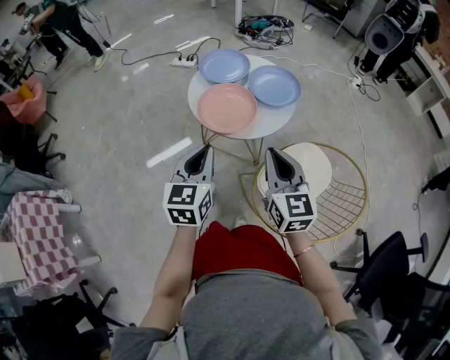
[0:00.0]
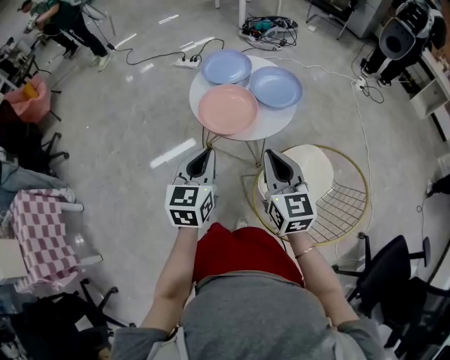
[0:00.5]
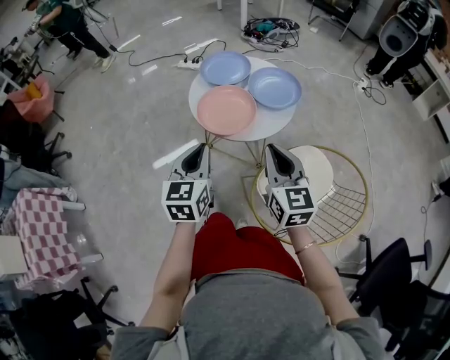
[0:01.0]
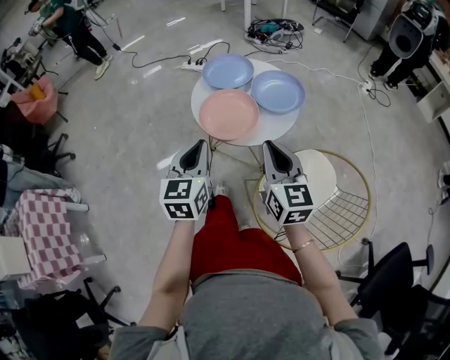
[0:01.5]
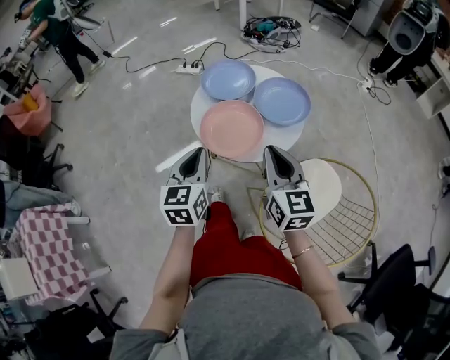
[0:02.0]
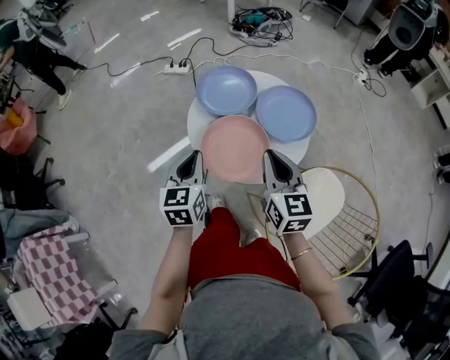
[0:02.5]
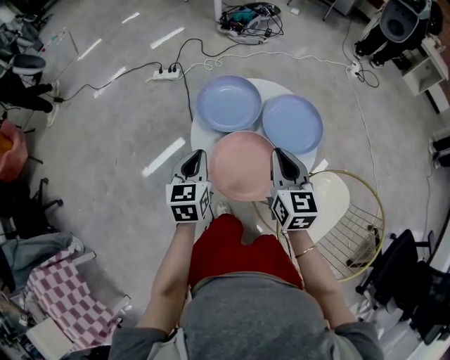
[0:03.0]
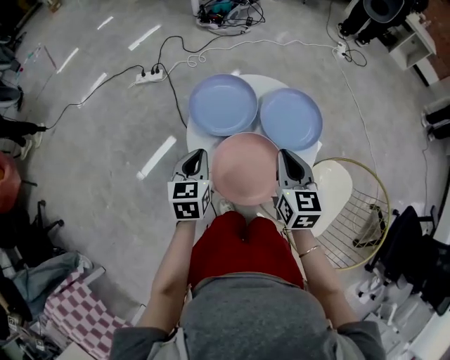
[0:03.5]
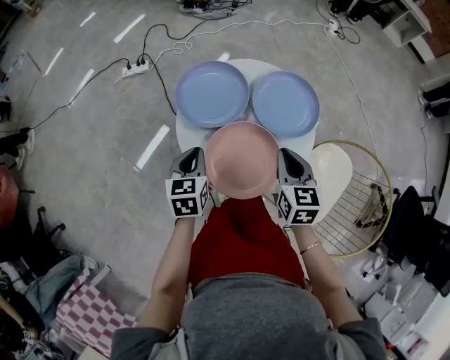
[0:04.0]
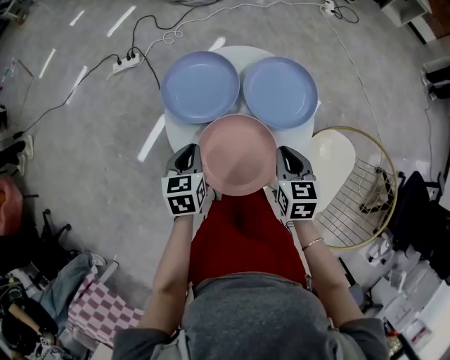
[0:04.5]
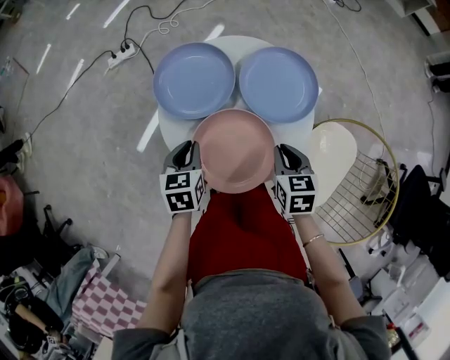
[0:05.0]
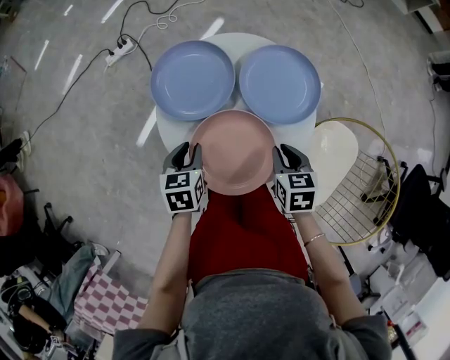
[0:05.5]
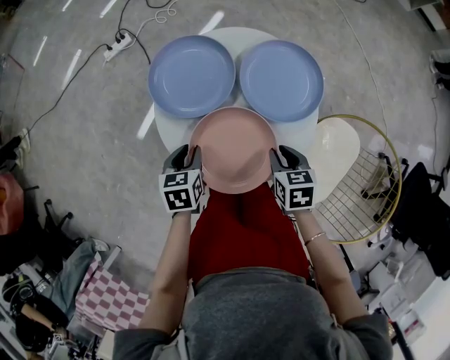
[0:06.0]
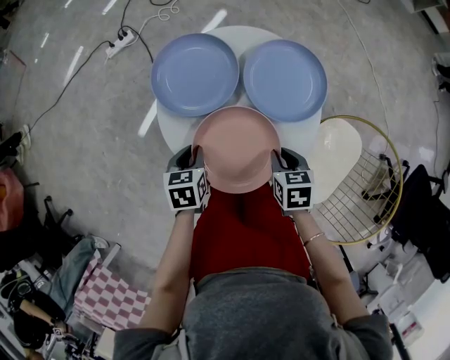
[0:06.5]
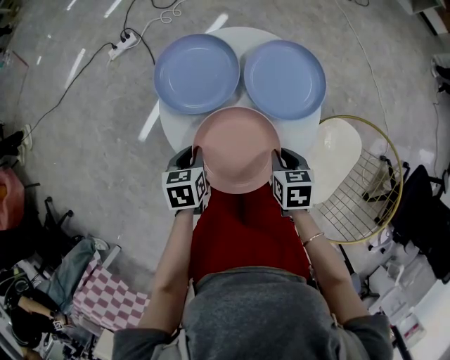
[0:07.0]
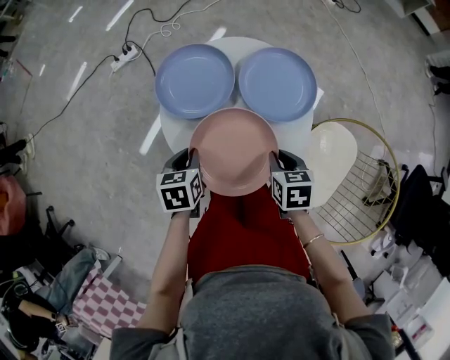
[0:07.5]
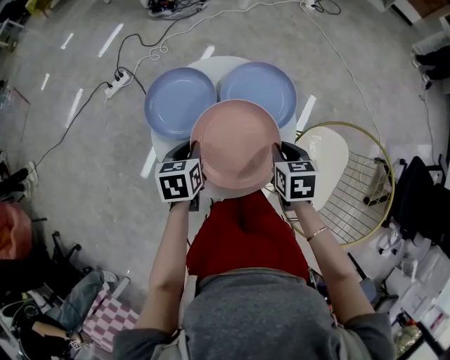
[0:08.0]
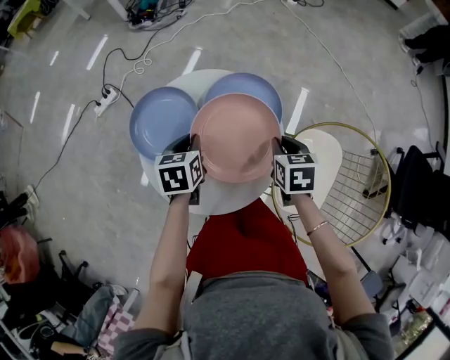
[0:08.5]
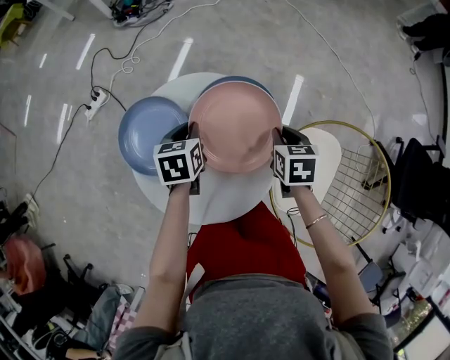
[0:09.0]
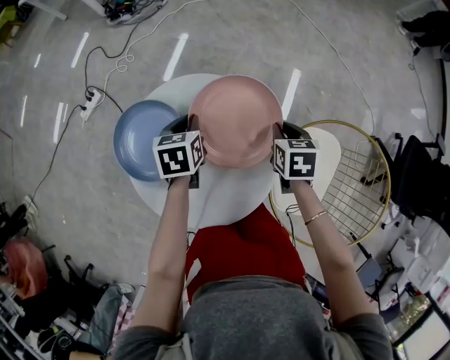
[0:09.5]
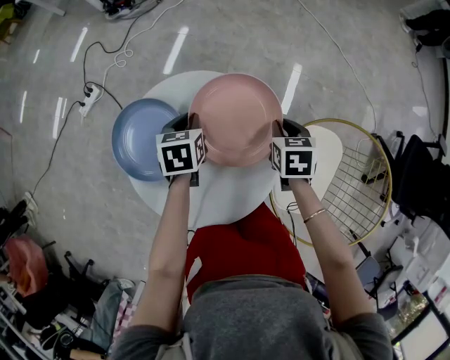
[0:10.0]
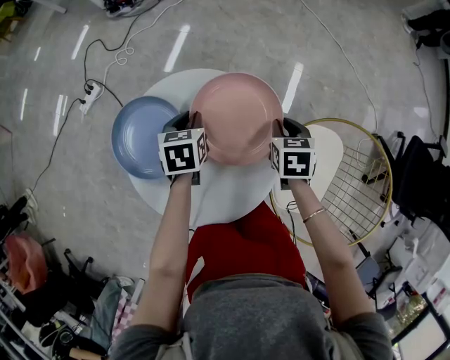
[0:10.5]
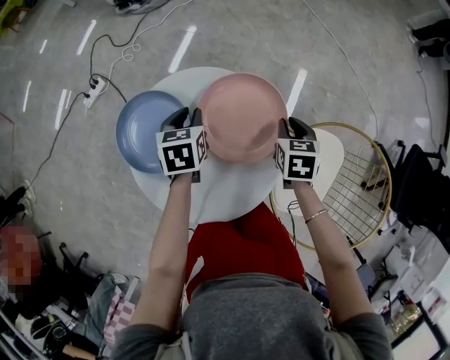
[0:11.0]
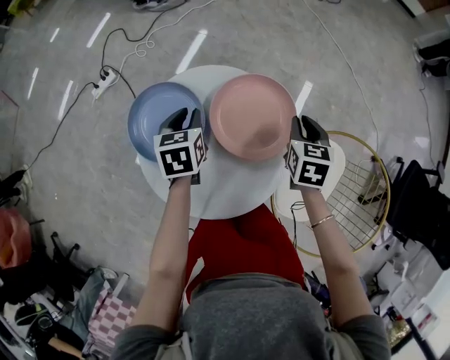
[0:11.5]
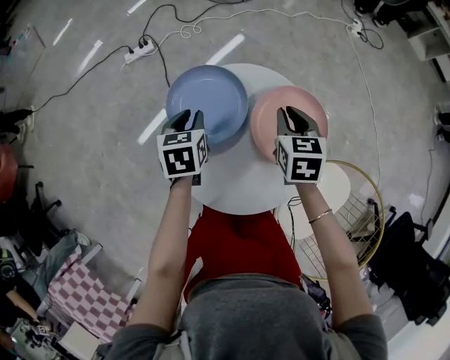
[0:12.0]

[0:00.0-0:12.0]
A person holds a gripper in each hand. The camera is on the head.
0:00.0 to 0:02.0: The two grippers go some 10 cm forward.
0:02.0 to 0:04.0: The two grippers go approximately 20 cm forward and downward. The left gripper changes its angle by roughly 30 degrees. The right gripper rotates approximately 30 degrees.
0:04.0 to 0:06.0: The two grippers go some 10 cm downward. The left gripper opens up. The right gripper rotates about 30 degrees.
0:06.0 to 0:08.0: The right gripper travels upward by approximately 5 cm. The left gripper heads upward and forward, covering roughly 10 cm.
0:08.0 to 0:10.0: The left gripper goes some 20 cm forward; the right gripper travels forward and to the right by roughly 15 cm.
0:10.0 to 0:12.0: The right gripper shifts by about 20 cm, and changes its angle by about 30 degrees, while the left gripper shifts by about 15 cm, and rotates roughly 30 degrees.

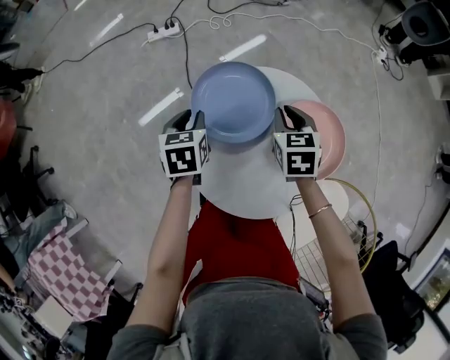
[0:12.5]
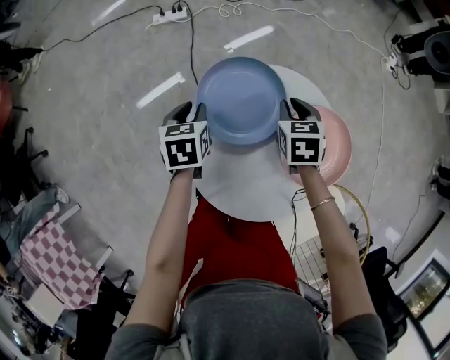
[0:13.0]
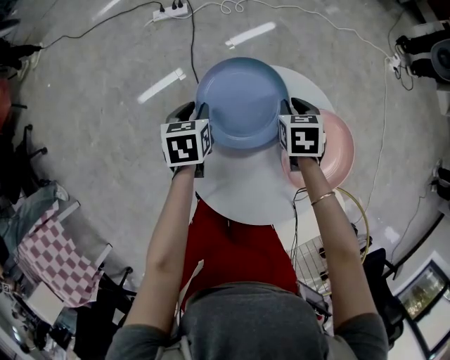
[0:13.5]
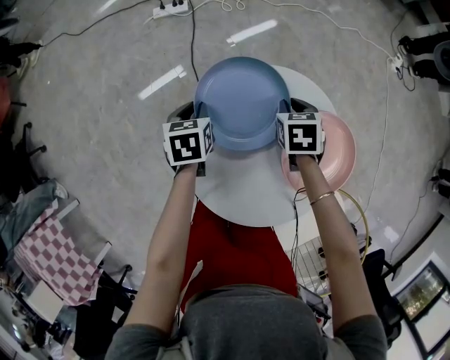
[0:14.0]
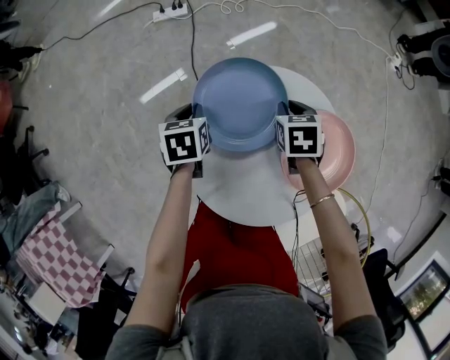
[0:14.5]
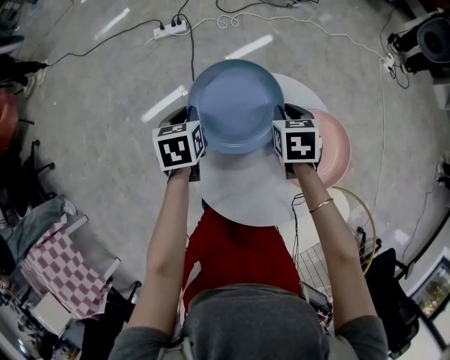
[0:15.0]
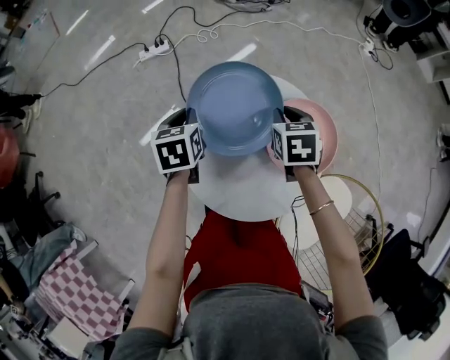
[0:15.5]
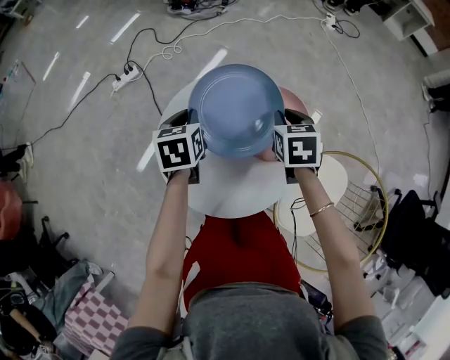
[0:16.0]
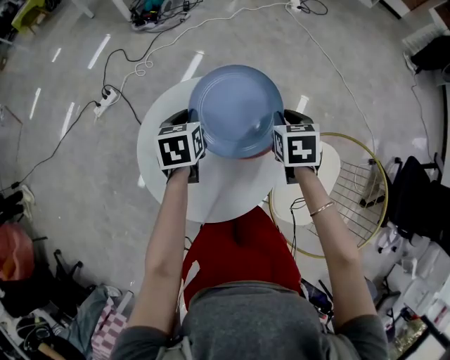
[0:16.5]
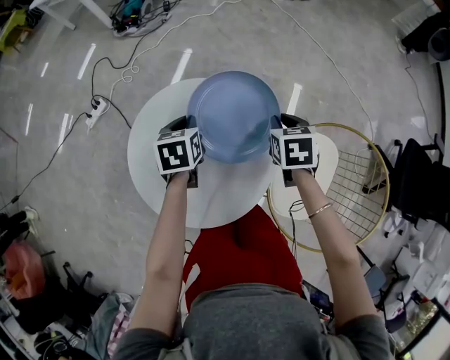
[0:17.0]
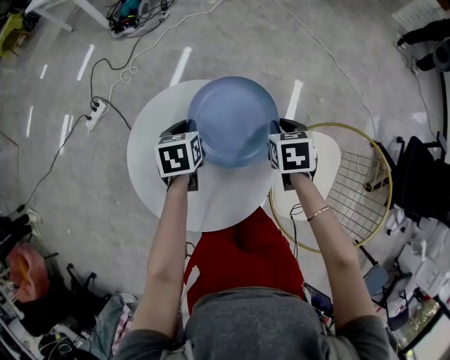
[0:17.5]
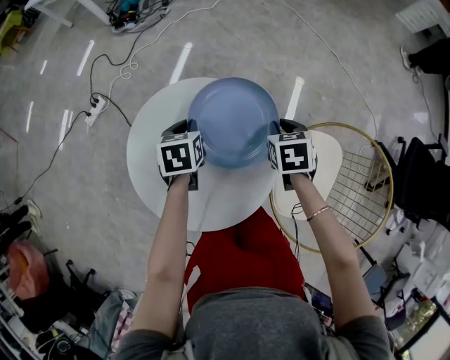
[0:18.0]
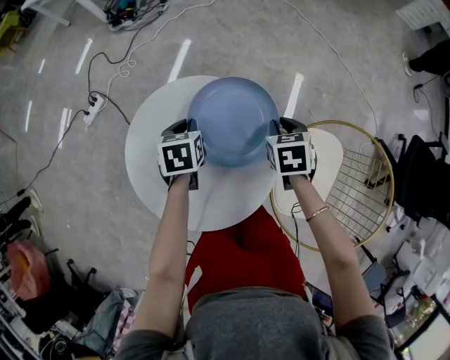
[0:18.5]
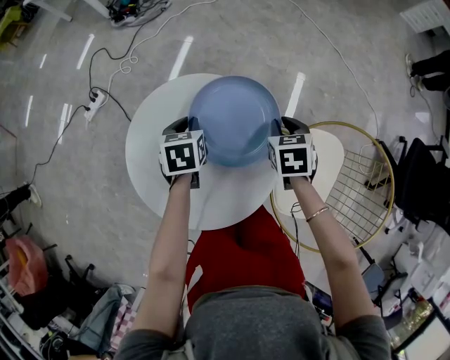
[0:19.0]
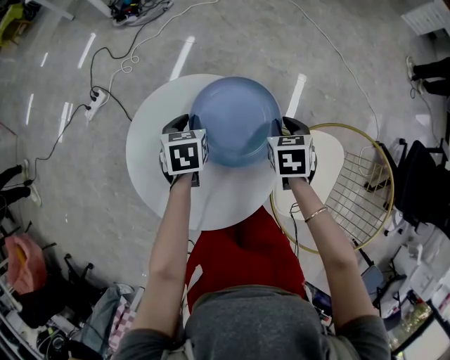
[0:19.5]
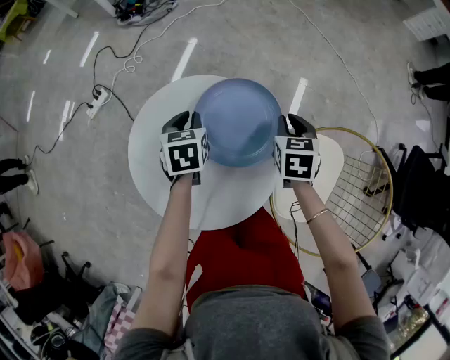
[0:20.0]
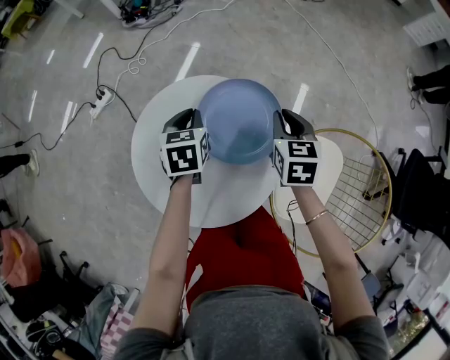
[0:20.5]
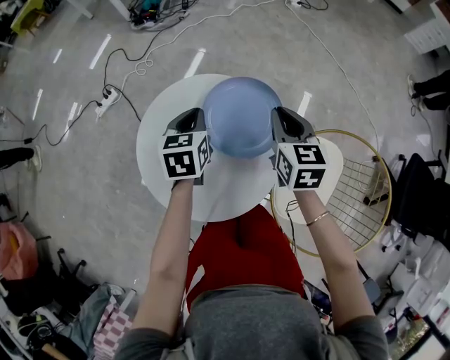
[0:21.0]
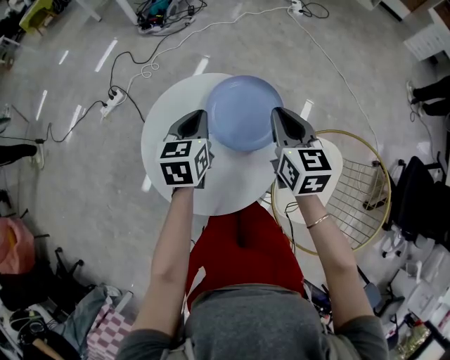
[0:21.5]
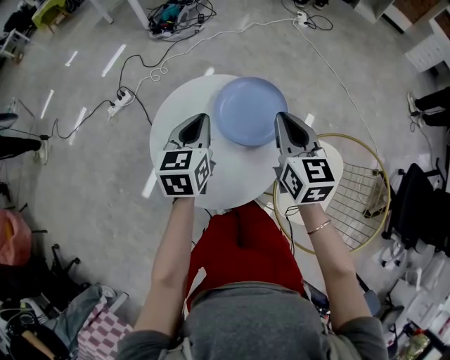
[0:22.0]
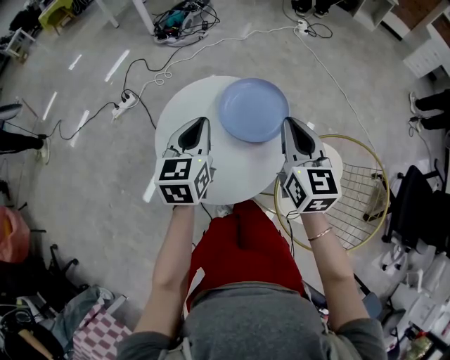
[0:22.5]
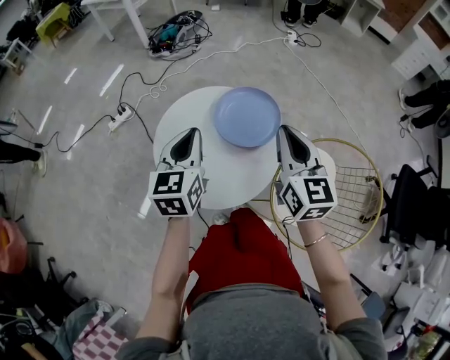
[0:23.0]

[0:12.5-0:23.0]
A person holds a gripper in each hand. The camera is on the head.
0:12.5 to 0:14.5: Both grippers travel together downward, about 5 cm.
0:14.5 to 0:16.5: The left gripper changes place by roughly 25 cm, and rotates some 40 degrees; the right gripper moves approximately 25 cm, and turns by approximately 40 degrees.
0:16.5 to 0:19.0: Both grippers travel together downward, approximately 10 cm.
0:19.0 to 0:21.0: Both grippers travel together upward, about 10 cm. The right gripper changes its angle by about 30 degrees.
0:21.0 to 0:23.0: Both grippers travel together upward and backward, roughly 20 cm. The right gripper swivels some 20 degrees; the left gripper turns by about 20 degrees.

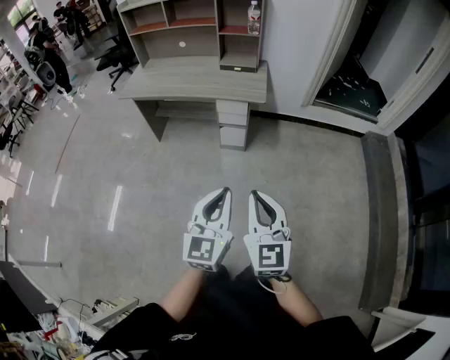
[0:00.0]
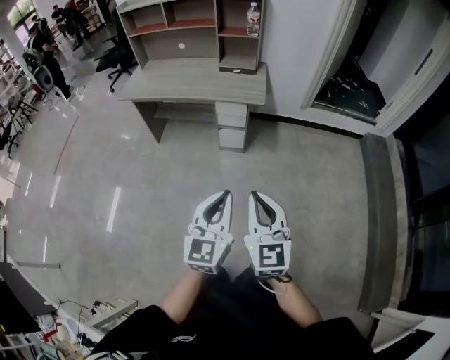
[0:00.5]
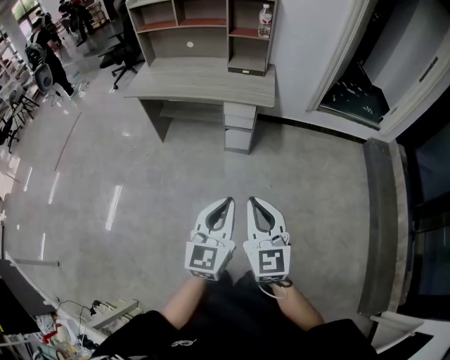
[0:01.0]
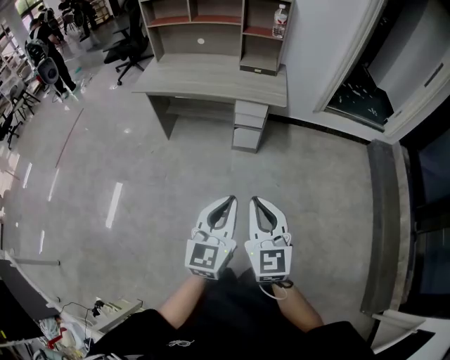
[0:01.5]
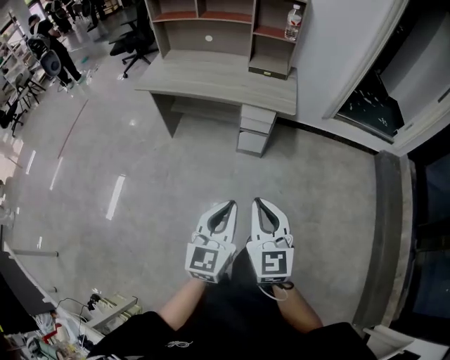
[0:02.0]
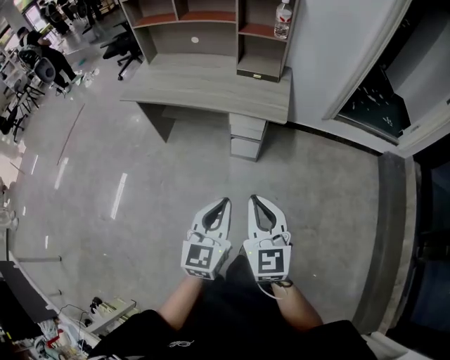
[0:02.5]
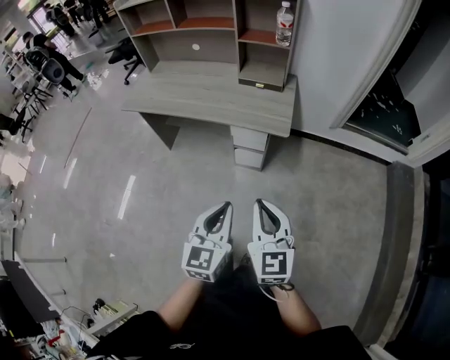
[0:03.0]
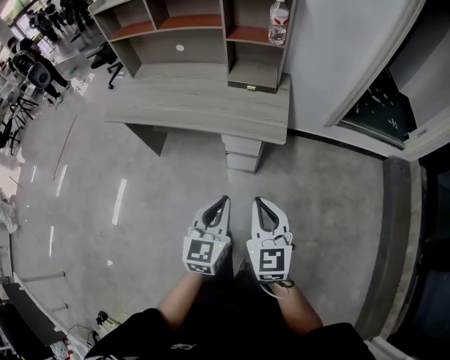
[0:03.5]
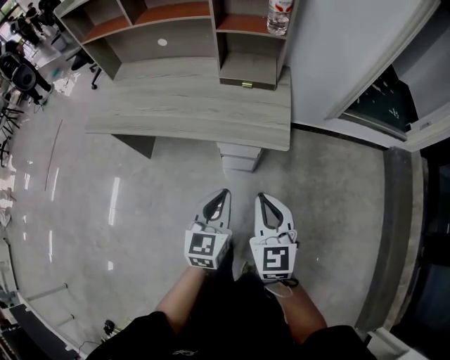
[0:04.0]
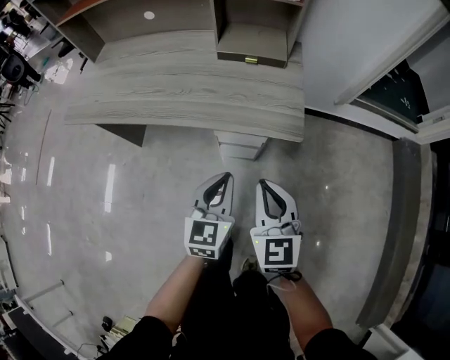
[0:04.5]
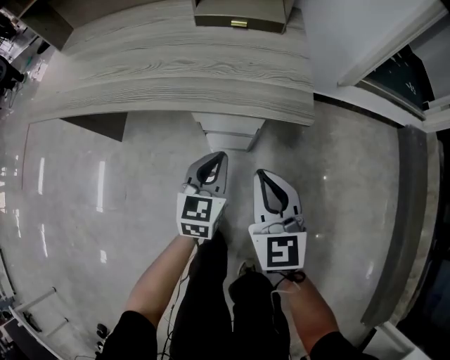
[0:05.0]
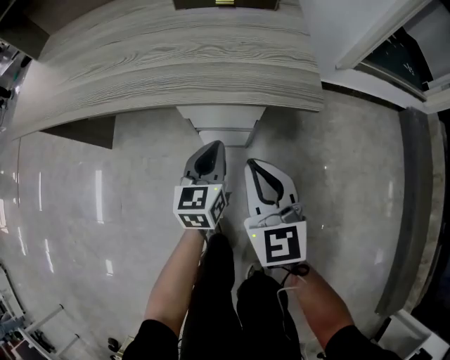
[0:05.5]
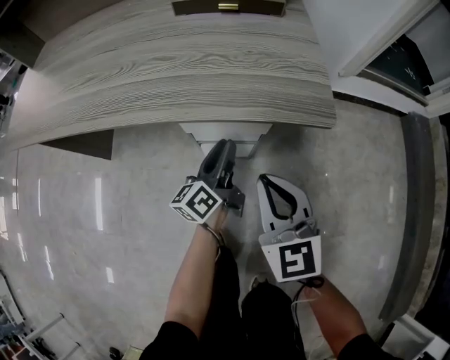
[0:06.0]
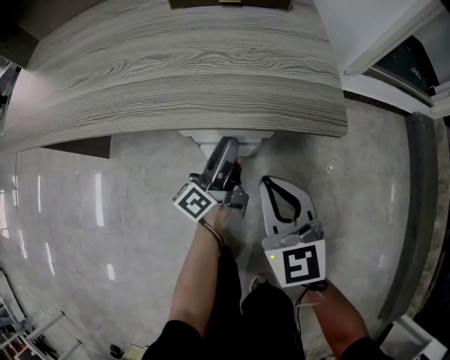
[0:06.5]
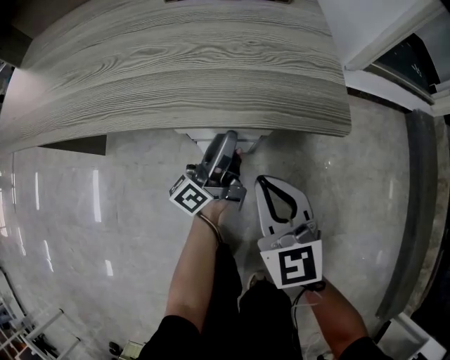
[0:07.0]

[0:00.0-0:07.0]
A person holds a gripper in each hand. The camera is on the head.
0:00.0 to 0:02.0: The grippers both shift to the left and forward by about 10 cm.
0:02.0 to 0:03.5: The two grippers go some 25 cm forward.
0:03.5 to 0:05.0: Both grippers travel together downward and forward, some 35 cm.
0:05.0 to 0:07.0: The left gripper shifts about 15 cm forward and downward, angles its fingers upward, by roughly 40 degrees, and opens up; the right gripper heads downward, covering roughly 10 cm.
